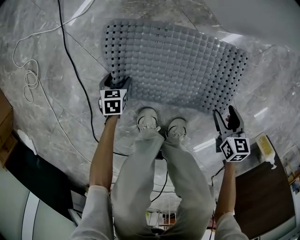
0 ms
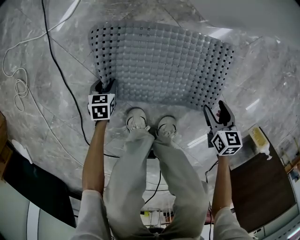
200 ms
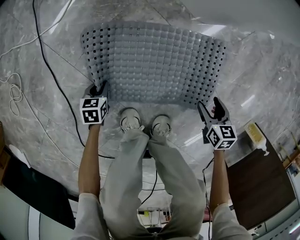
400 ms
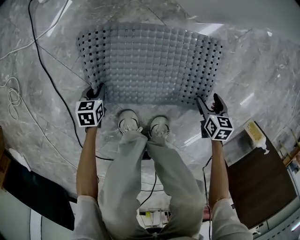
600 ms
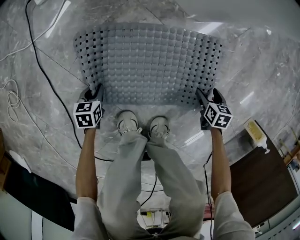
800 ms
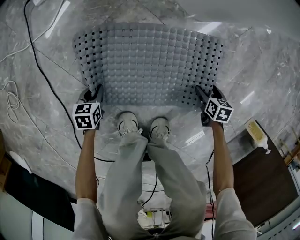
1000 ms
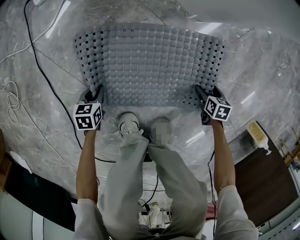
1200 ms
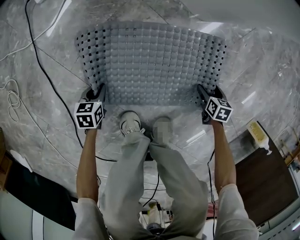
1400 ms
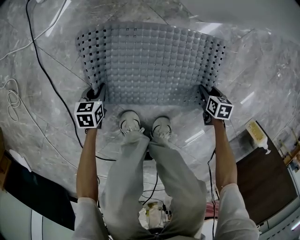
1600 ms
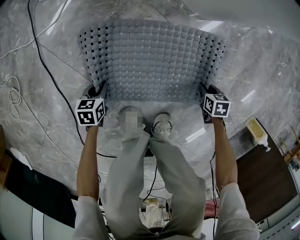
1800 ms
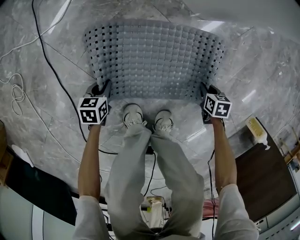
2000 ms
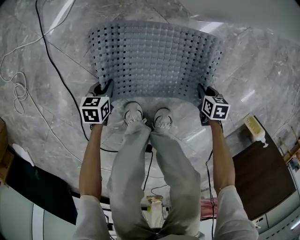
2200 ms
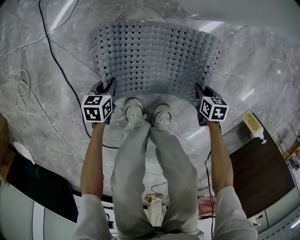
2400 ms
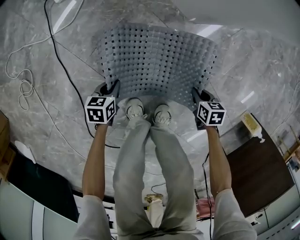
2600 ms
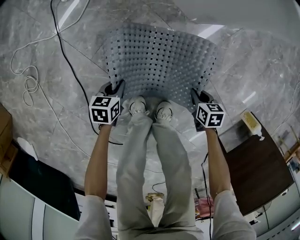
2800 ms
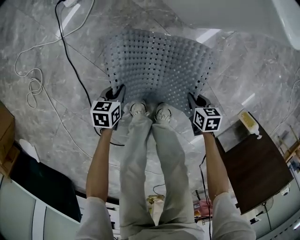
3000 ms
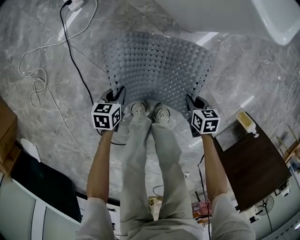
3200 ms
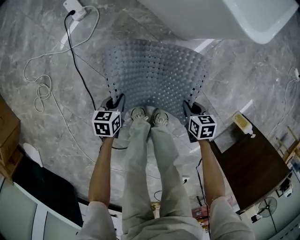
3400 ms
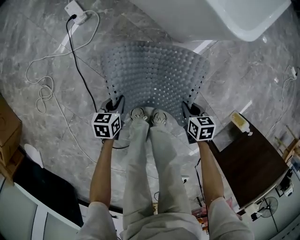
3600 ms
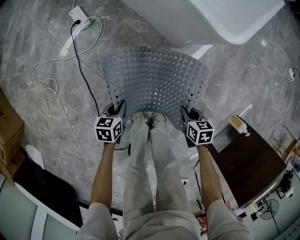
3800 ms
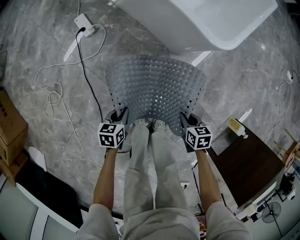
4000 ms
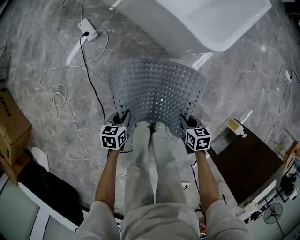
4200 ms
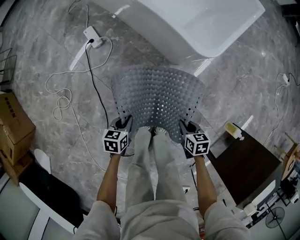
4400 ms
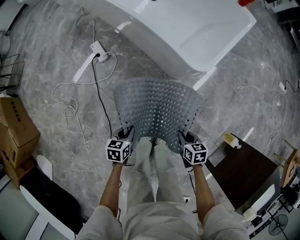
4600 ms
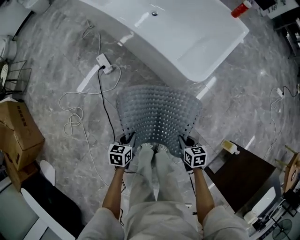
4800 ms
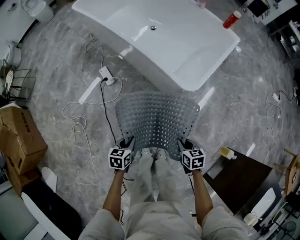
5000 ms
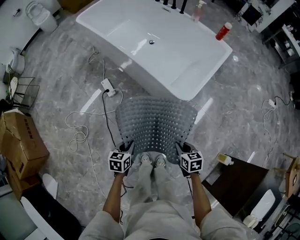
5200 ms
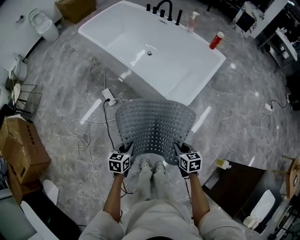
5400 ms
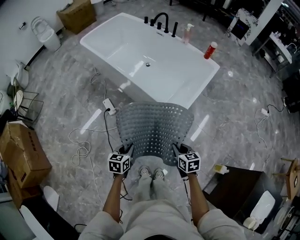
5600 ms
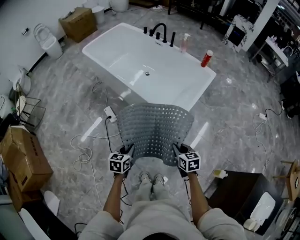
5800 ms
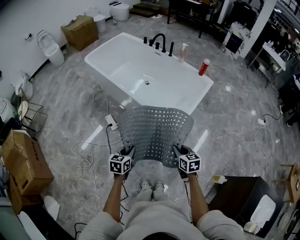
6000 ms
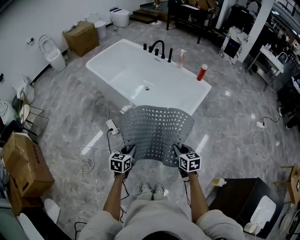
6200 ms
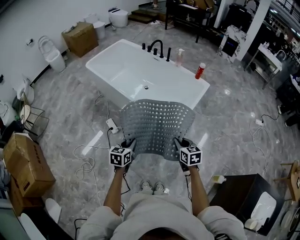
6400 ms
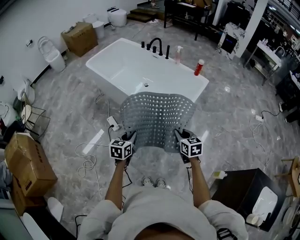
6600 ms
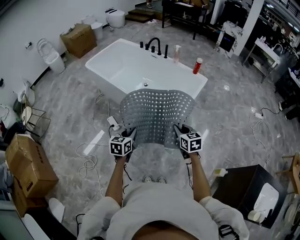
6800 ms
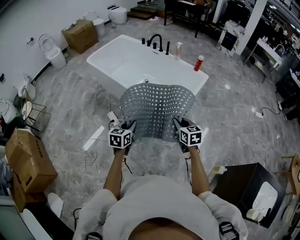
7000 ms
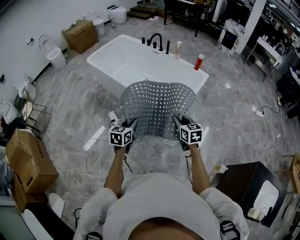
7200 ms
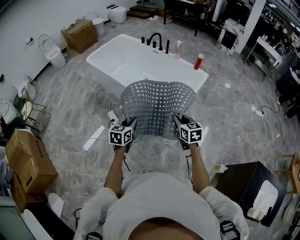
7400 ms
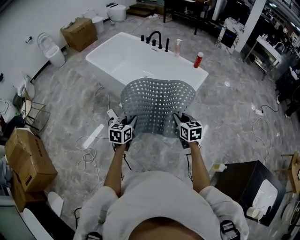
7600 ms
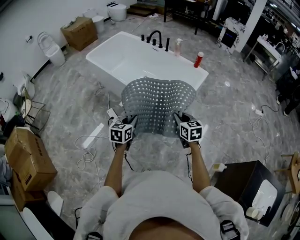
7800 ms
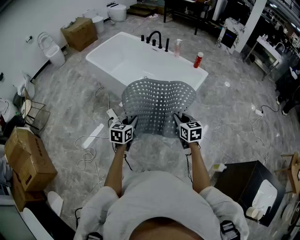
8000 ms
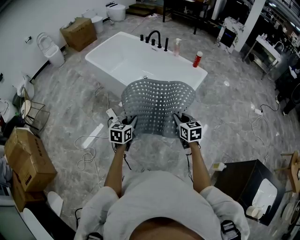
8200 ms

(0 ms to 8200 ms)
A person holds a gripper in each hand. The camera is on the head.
0 ms - 1600 ms: The right gripper is displaced downward by about 15 cm, and changes its angle by about 20 degrees. The left gripper closes.
1600 ms - 3200 ms: The two grippers go about 25 cm upward. The right gripper closes.
3200 ms - 5000 ms: Both grippers travel together upward, some 40 cm.
5000 ms - 6600 ms: Both grippers travel together upward, some 30 cm. The right gripper rotates approximately 30 degrees, while the left gripper swivels some 20 degrees.
6600 ms - 8200 ms: The grippers move only a little.

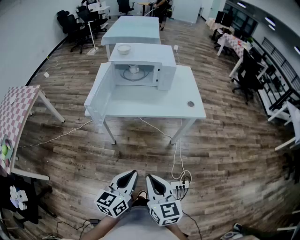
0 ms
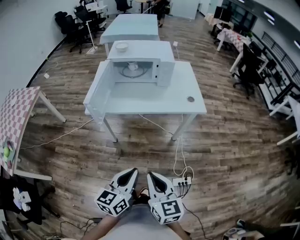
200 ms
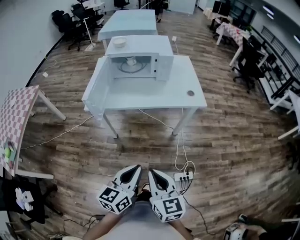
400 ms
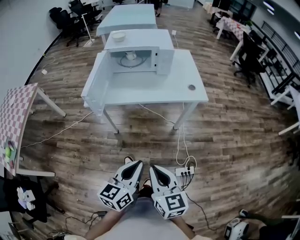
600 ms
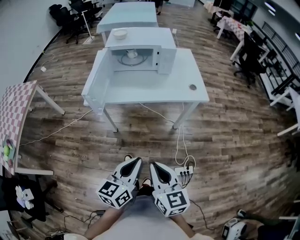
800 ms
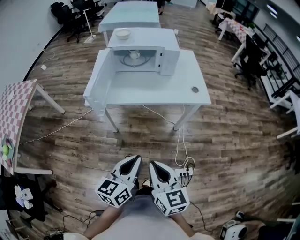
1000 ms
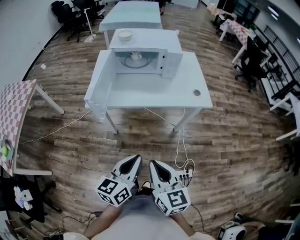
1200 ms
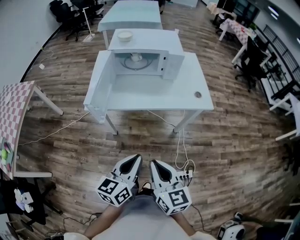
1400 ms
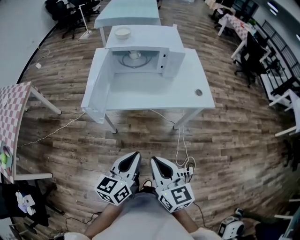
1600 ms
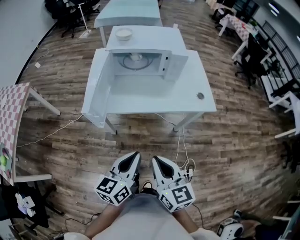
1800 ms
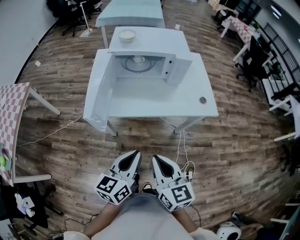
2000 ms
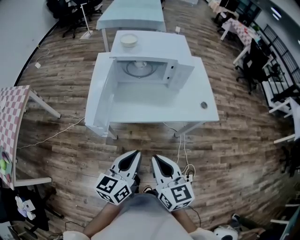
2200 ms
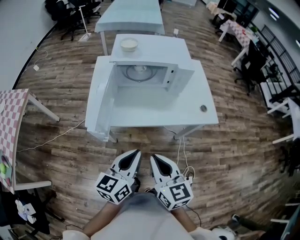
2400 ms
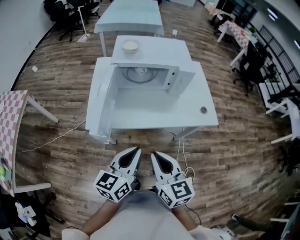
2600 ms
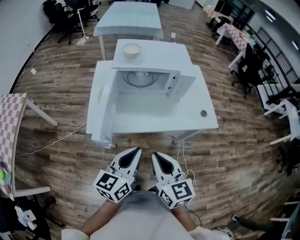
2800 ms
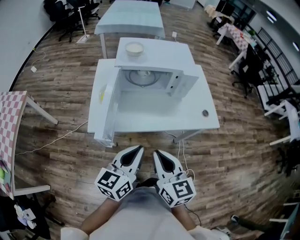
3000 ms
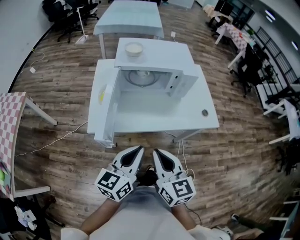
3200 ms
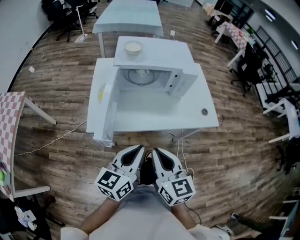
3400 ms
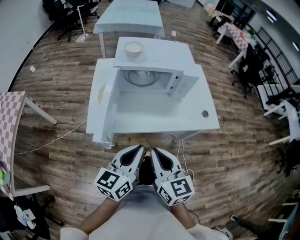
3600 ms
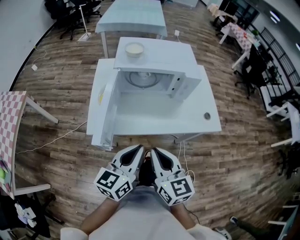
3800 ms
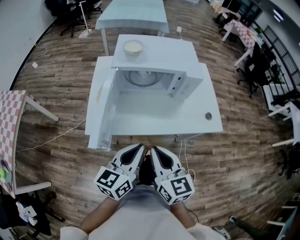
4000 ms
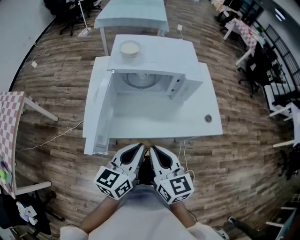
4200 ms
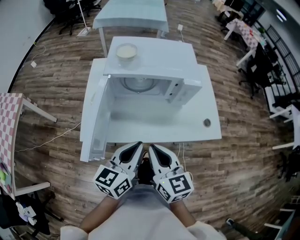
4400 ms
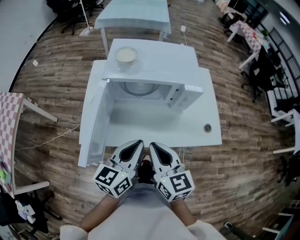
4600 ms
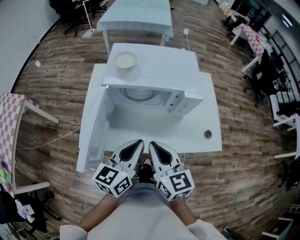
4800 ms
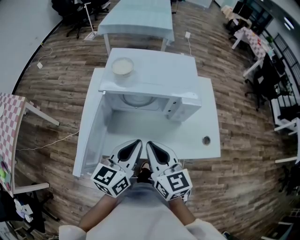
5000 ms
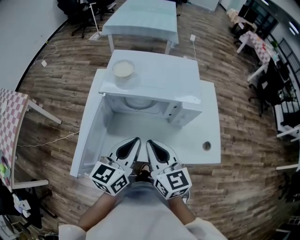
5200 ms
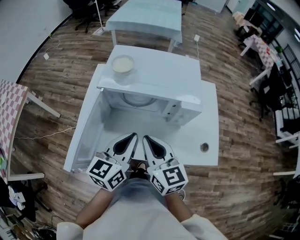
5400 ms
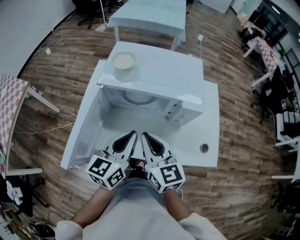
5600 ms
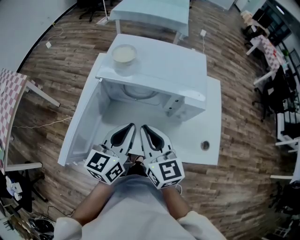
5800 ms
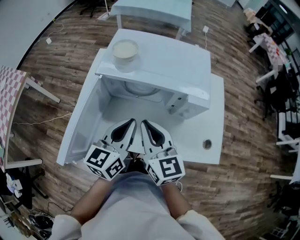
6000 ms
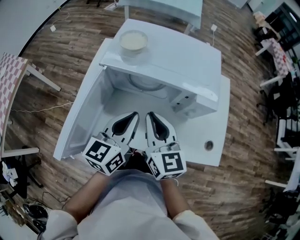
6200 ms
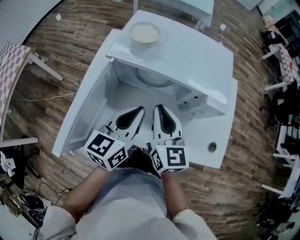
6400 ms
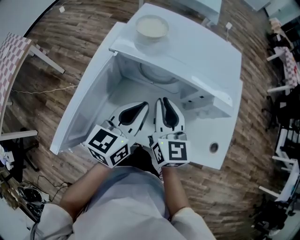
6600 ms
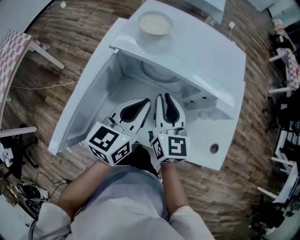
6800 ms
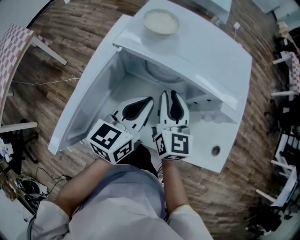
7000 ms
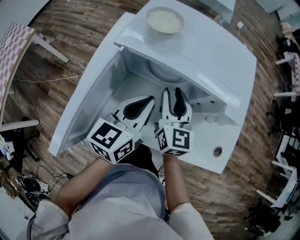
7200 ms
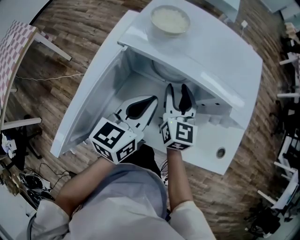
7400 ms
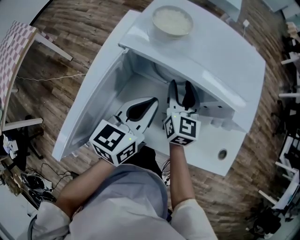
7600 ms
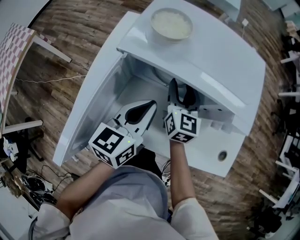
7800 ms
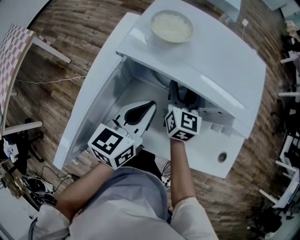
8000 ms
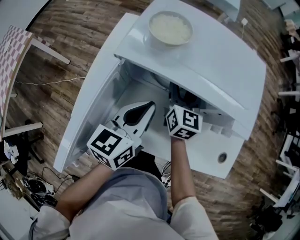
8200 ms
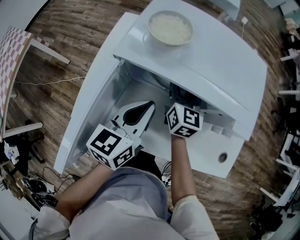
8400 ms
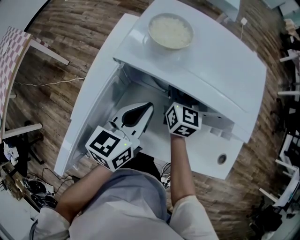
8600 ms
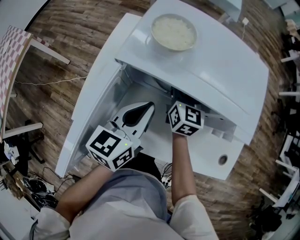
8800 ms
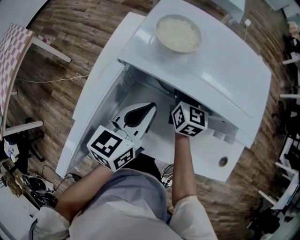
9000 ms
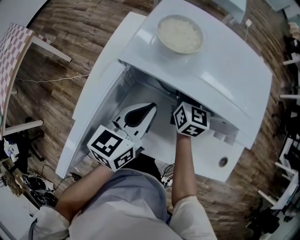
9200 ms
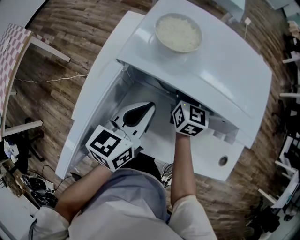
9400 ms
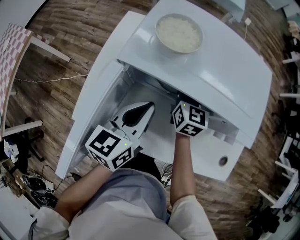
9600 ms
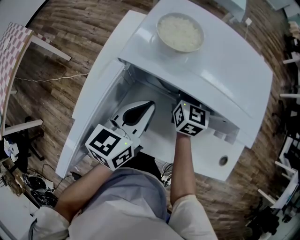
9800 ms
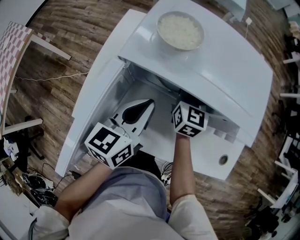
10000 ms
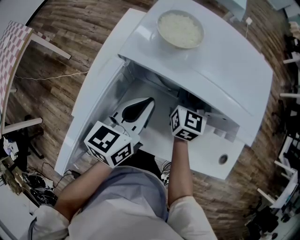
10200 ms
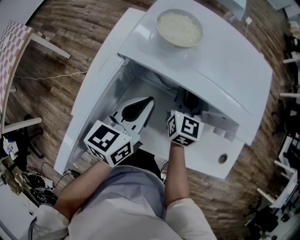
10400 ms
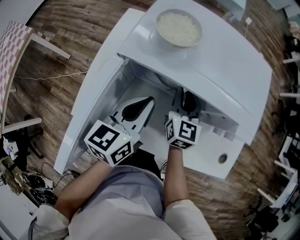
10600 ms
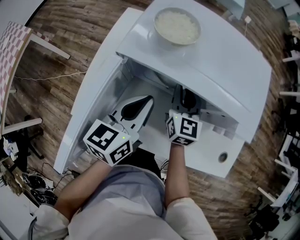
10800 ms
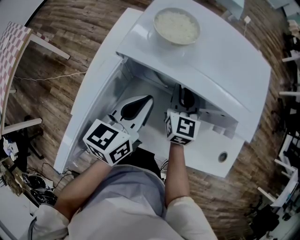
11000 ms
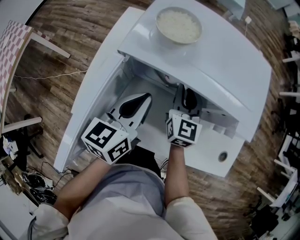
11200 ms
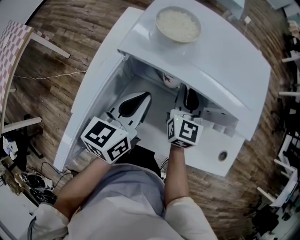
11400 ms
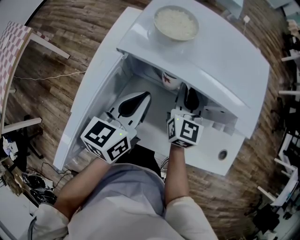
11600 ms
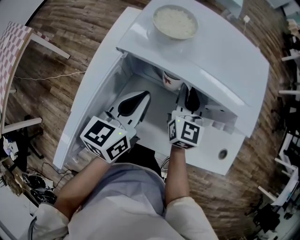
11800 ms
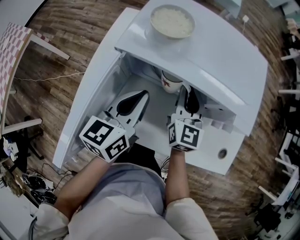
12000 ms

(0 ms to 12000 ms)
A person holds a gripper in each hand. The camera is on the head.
0 ms - 1600 ms: Both grippers travel together forward, some 10 cm.
1600 ms - 3000 ms: The two grippers go roughly 15 cm forward and to the left.
3000 ms - 4400 ms: The two grippers go roughly 10 cm forward.
4400 ms - 6000 ms: The grippers both shift forward by approximately 15 cm.
6000 ms - 7600 ms: The right gripper is displaced forward and downward by approximately 20 cm, and opens. Meanwhile the left gripper travels forward and downward by approximately 10 cm.
7600 ms - 9000 ms: The right gripper heads forward, covering about 5 cm.
9000 ms - 10400 ms: The right gripper closes.
10400 ms - 12000 ms: The right gripper ends up some 5 cm from where it was.

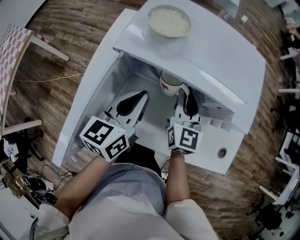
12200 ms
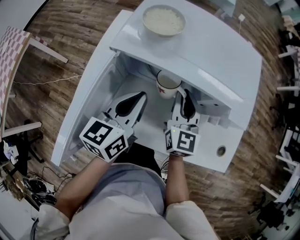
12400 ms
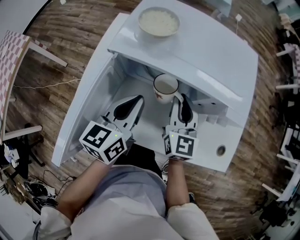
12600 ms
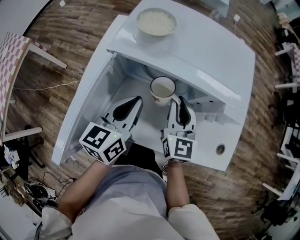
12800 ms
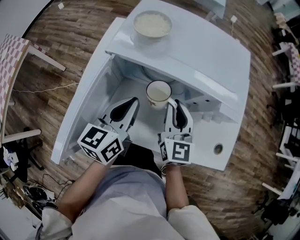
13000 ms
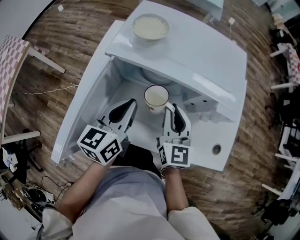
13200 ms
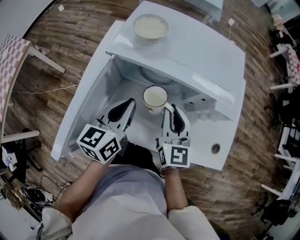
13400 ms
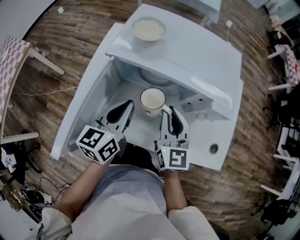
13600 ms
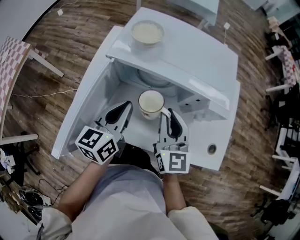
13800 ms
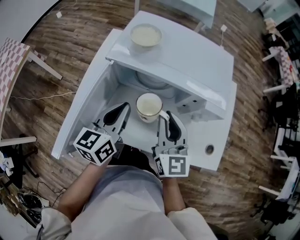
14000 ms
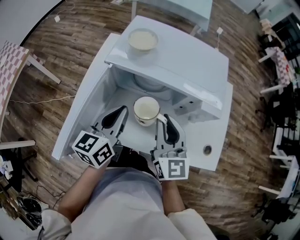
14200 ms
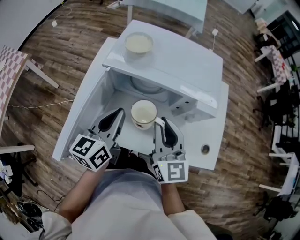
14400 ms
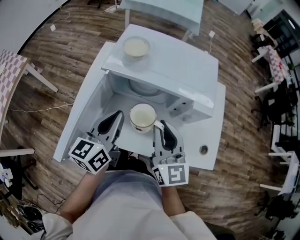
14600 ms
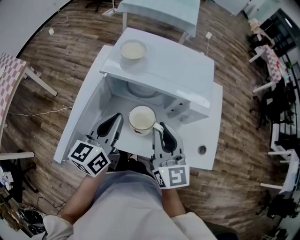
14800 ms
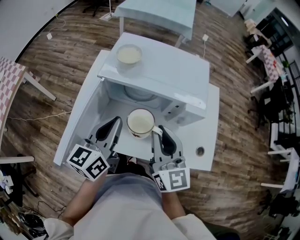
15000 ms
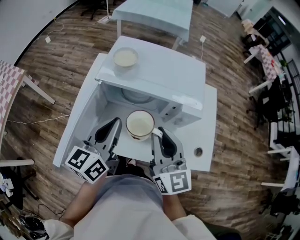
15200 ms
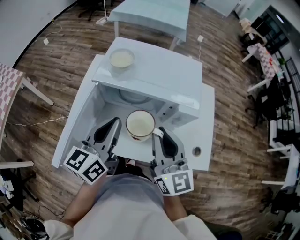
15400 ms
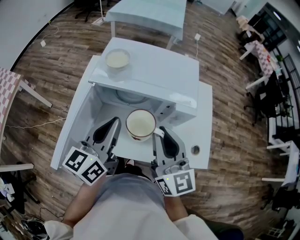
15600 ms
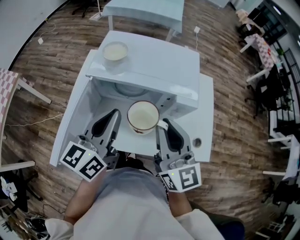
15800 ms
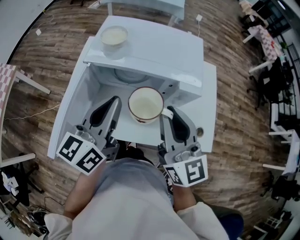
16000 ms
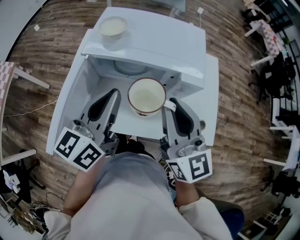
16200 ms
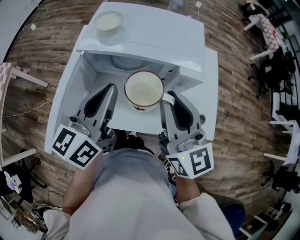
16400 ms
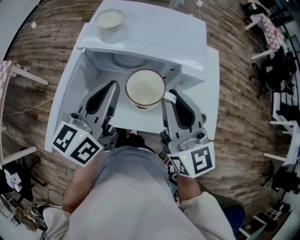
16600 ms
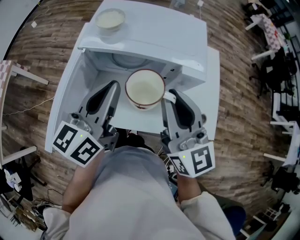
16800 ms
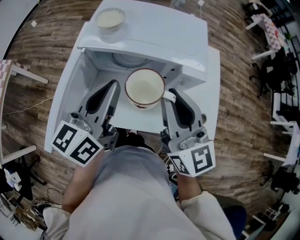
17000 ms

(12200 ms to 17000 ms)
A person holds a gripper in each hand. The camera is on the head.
12200 ms - 13800 ms: The right gripper moves backward and upward, some 10 cm.
13800 ms - 15400 ms: The right gripper heads upward and backward, covering about 15 cm, while the left gripper heads upward, covering some 10 cm.
15400 ms - 17000 ms: The grippers stay close to where they were, moving slightly.
